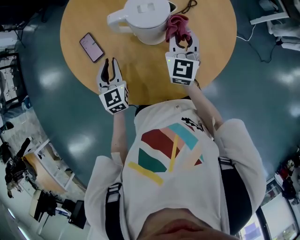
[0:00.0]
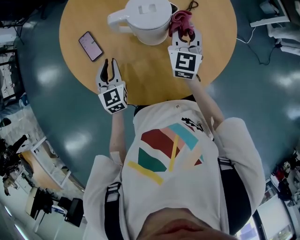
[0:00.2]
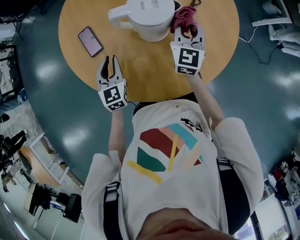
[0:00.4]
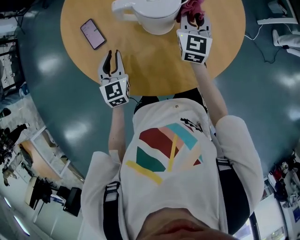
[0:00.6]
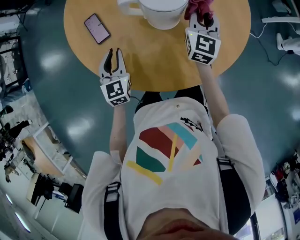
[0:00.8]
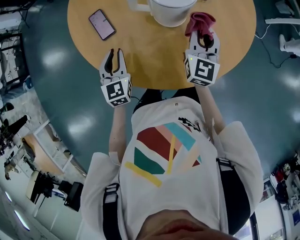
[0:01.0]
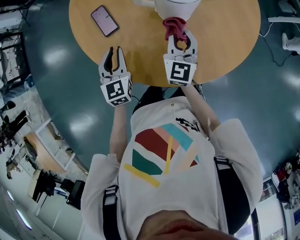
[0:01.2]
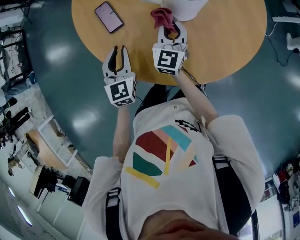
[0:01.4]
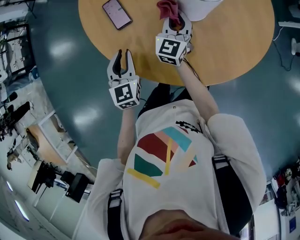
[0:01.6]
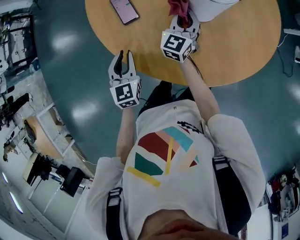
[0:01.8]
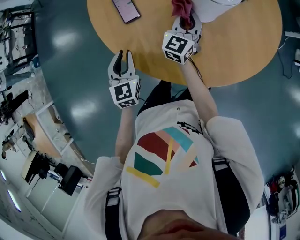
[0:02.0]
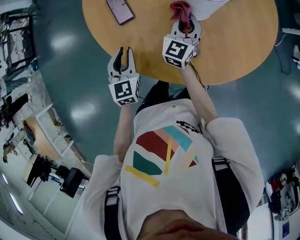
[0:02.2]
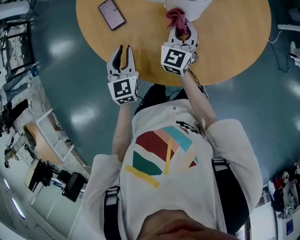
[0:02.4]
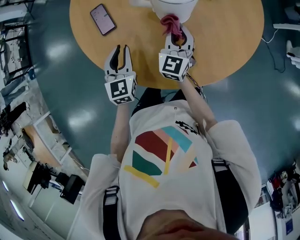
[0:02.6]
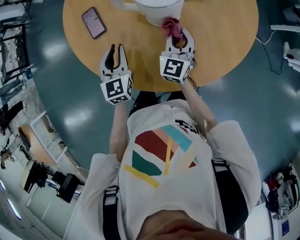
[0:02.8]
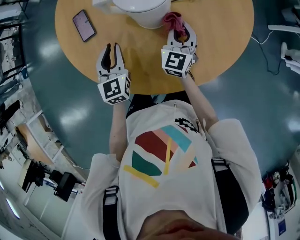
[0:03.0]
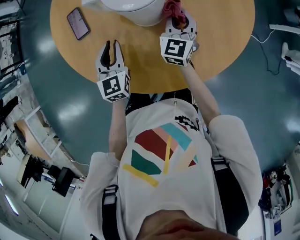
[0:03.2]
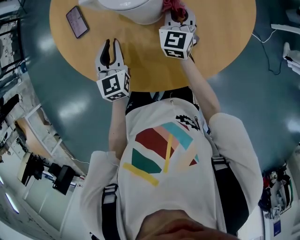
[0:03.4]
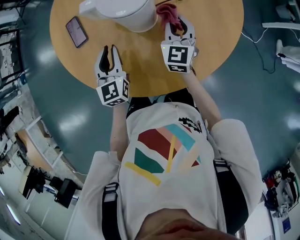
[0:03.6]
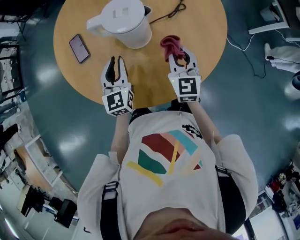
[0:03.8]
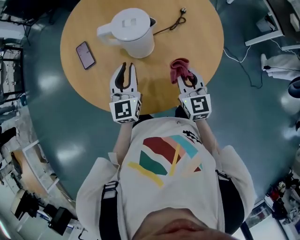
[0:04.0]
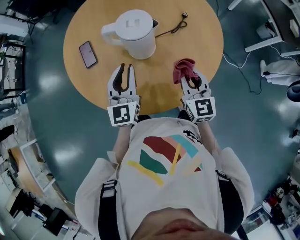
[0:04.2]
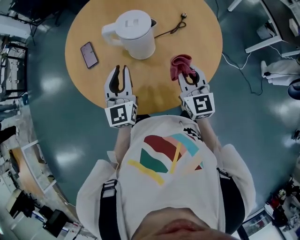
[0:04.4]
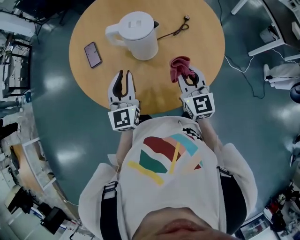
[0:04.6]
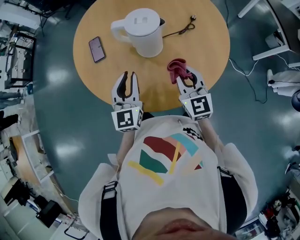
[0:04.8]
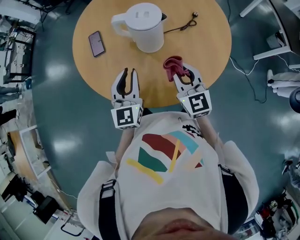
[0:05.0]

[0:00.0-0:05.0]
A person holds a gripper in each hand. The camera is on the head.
0:00.0 to 0:01.6: The right gripper heads to the left and downward, covering some 20 cm, while the left gripper is displaced to the left and backward by about 10 cm.
0:01.6 to 0:03.4: Both grippers travel together to the right, about 20 cm.
0:03.4 to 0:05.0: The left gripper goes some 15 cm upward, backward and to the right, while the right gripper travels backward and upward by roughly 20 cm, and turns by approximately 30 degrees.

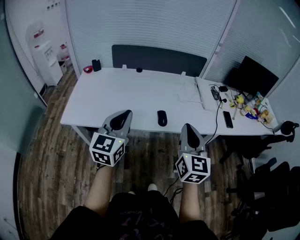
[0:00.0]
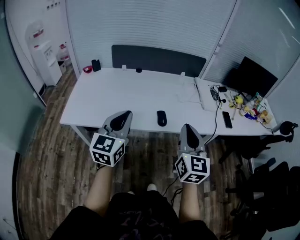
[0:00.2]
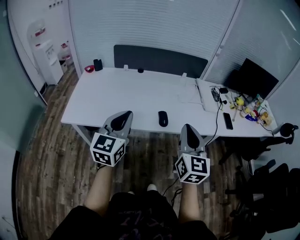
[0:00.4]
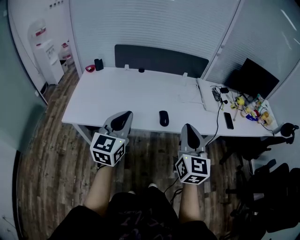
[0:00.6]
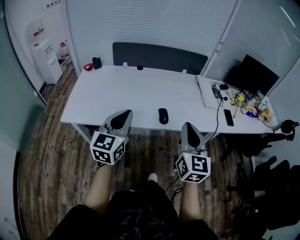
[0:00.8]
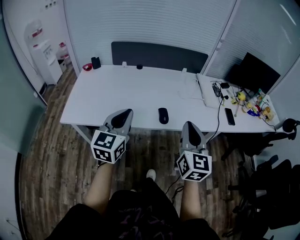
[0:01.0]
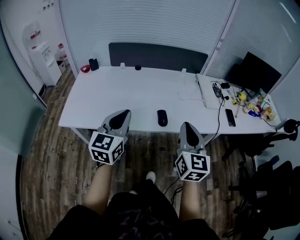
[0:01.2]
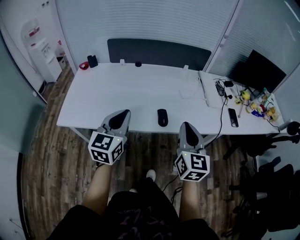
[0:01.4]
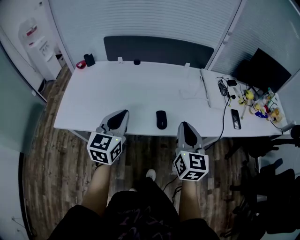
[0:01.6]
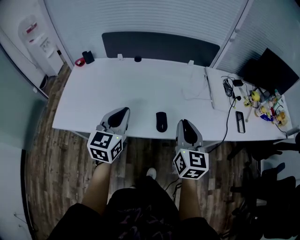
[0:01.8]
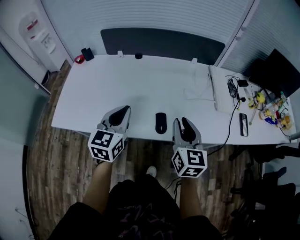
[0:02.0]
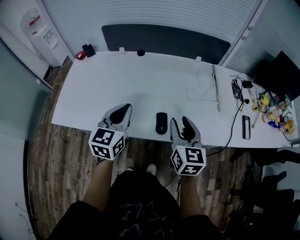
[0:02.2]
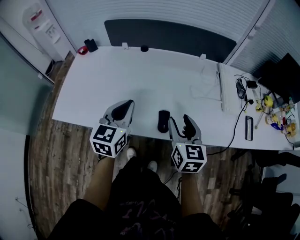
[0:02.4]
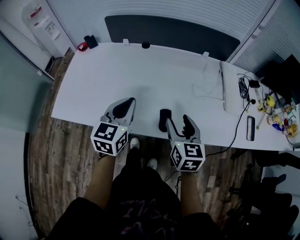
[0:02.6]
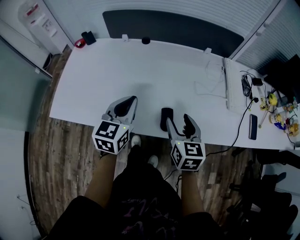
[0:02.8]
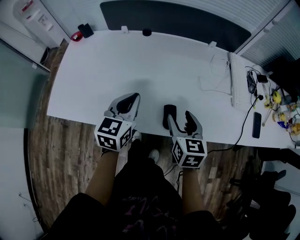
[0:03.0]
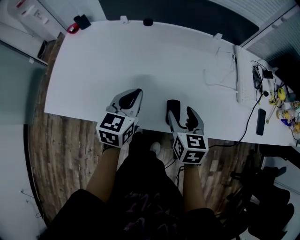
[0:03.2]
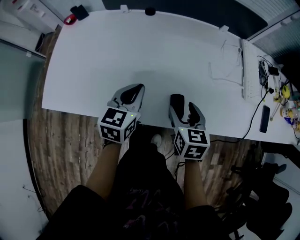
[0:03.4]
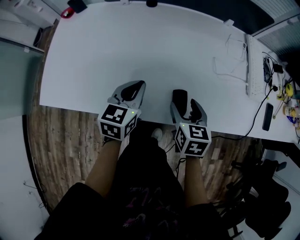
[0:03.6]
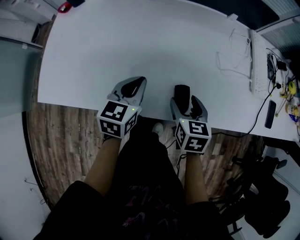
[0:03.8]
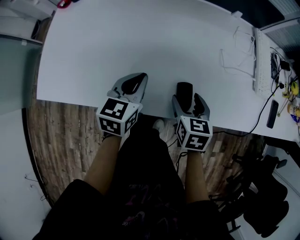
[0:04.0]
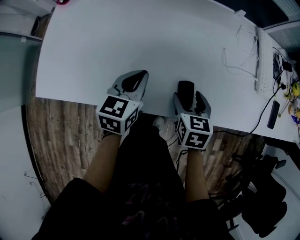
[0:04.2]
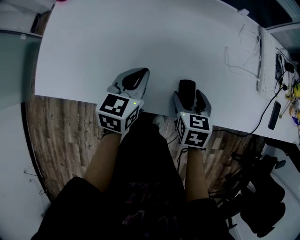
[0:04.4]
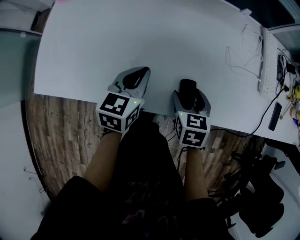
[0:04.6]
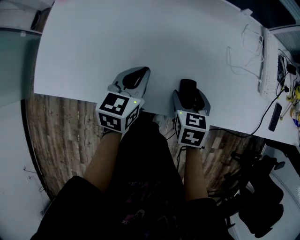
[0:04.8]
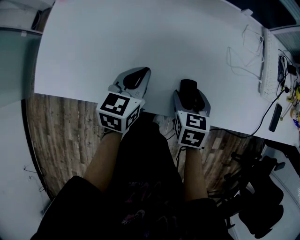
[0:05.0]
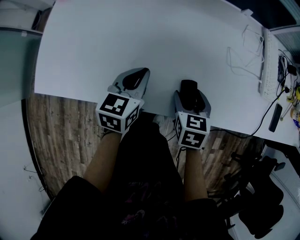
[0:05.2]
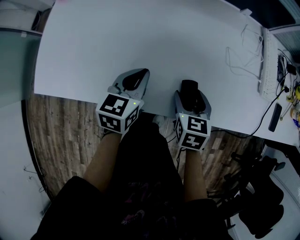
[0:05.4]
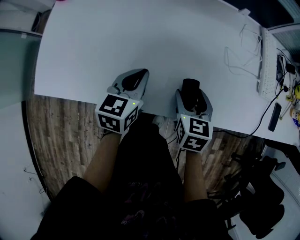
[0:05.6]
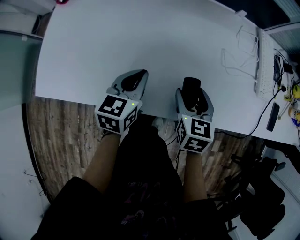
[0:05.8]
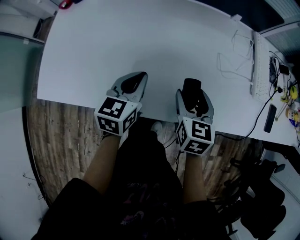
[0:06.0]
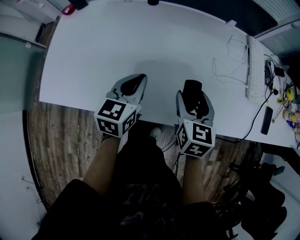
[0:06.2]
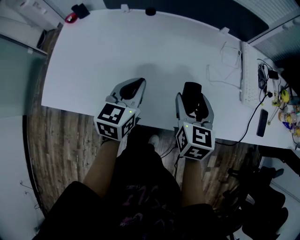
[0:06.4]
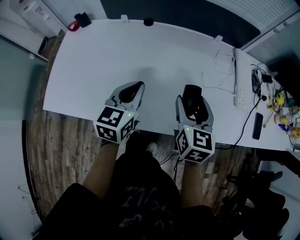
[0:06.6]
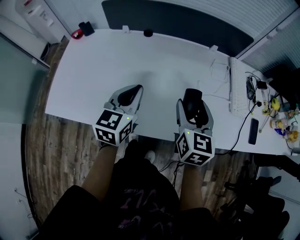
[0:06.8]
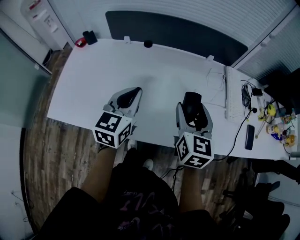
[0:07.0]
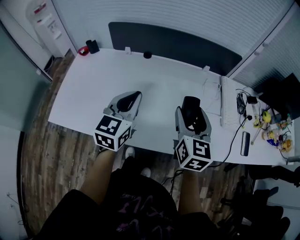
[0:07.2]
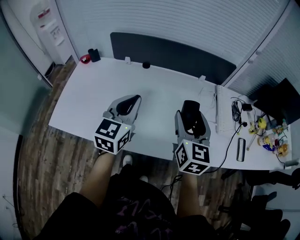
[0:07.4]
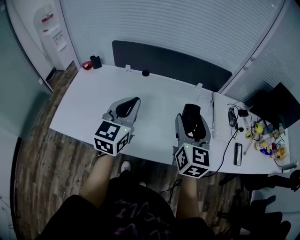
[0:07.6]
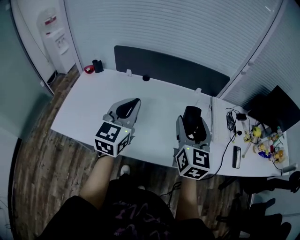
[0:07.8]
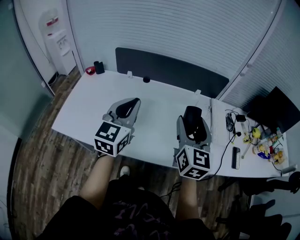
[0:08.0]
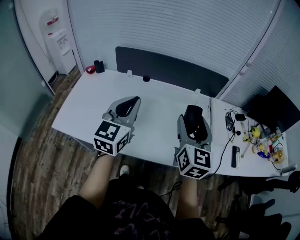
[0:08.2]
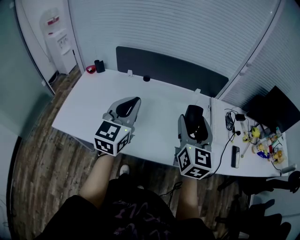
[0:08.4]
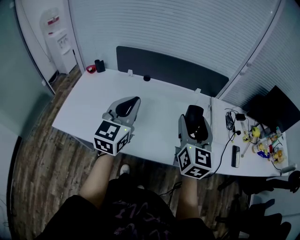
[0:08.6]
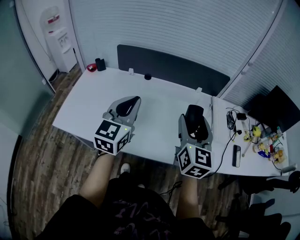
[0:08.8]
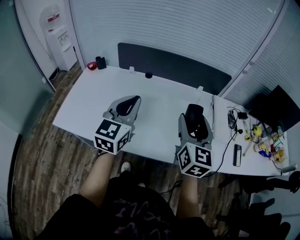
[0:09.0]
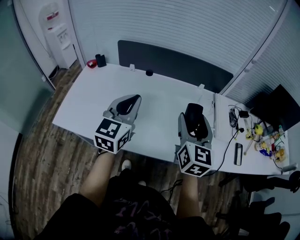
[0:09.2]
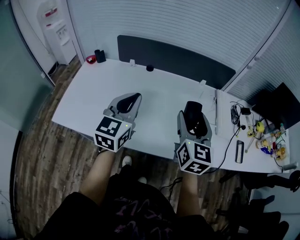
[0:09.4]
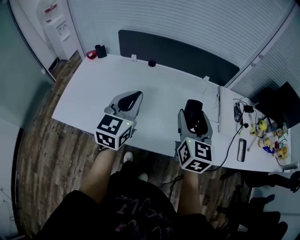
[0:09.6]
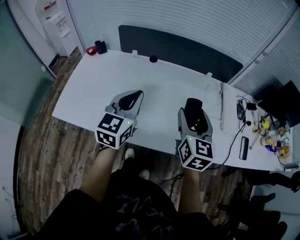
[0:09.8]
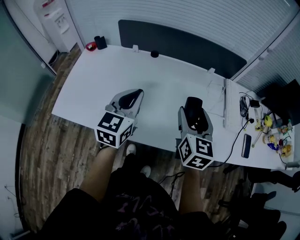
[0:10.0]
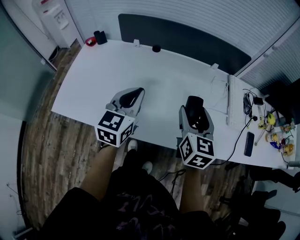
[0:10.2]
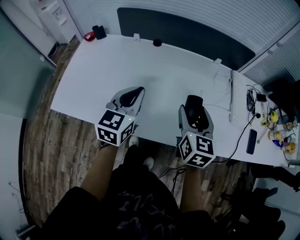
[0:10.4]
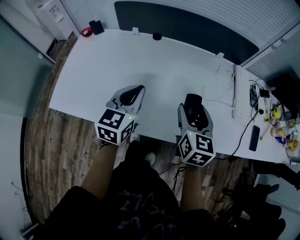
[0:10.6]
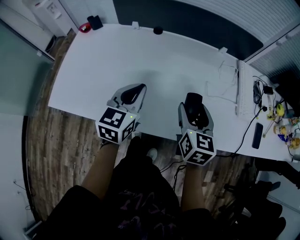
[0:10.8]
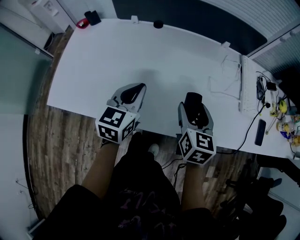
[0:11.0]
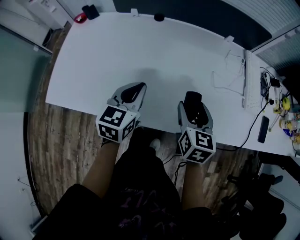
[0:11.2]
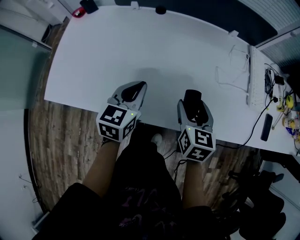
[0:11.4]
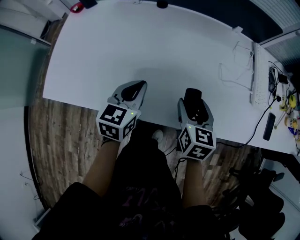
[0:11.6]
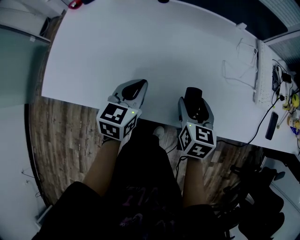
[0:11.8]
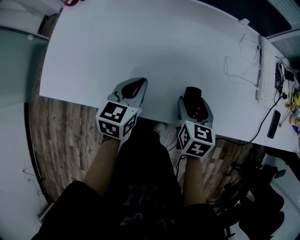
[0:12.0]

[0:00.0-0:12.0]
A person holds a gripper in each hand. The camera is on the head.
0:00.0 to 0:01.6: The grippers both shift forward and downward by roughly 15 cm.
0:01.6 to 0:03.0: Both grippers travel together forward and downward, about 20 cm. The right gripper rotates roughly 20 degrees, and opens its fingers.
0:03.0 to 0:04.4: The two grippers go about 10 cm downward.
0:04.4 to 0:06.0: The right gripper travels upward by roughly 5 cm.
0:06.0 to 0:07.6: Both grippers travel together upward, approximately 25 cm. The left gripper rotates approximately 30 degrees. Meanwhile the right gripper angles its fingers upward, by roughly 30 degrees.
0:07.6 to 0:09.0: There are only small adjustments of the grippers.
0:09.0 to 0:10.4: Both grippers travel together downward, roughly 10 cm.
0:10.4 to 0:12.0: Both grippers move downward, approximately 20 cm. The right gripper swivels about 20 degrees.

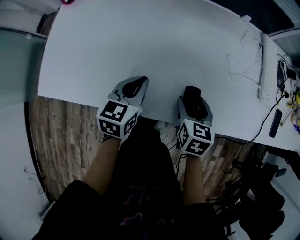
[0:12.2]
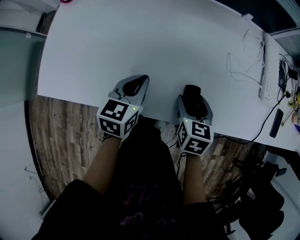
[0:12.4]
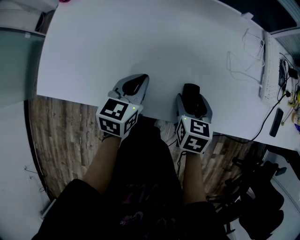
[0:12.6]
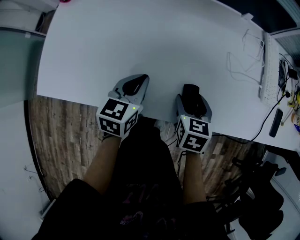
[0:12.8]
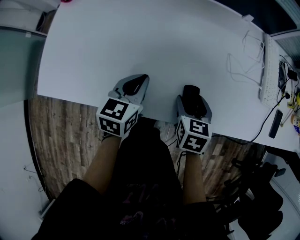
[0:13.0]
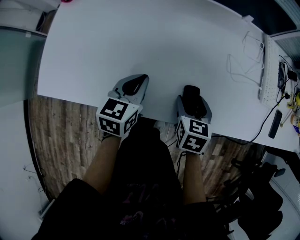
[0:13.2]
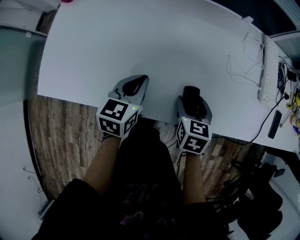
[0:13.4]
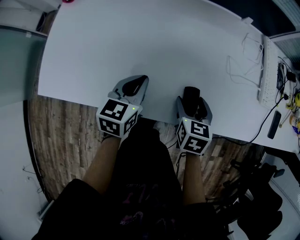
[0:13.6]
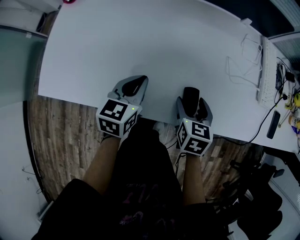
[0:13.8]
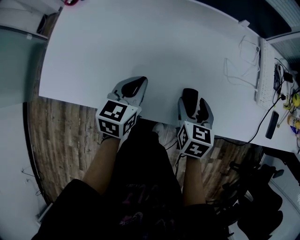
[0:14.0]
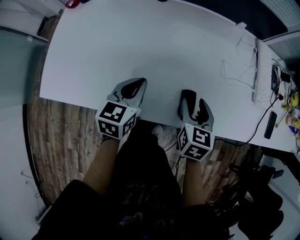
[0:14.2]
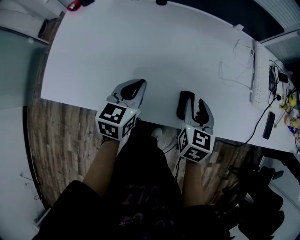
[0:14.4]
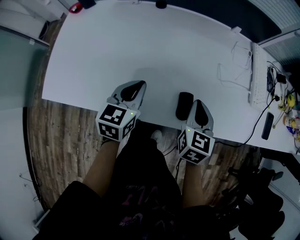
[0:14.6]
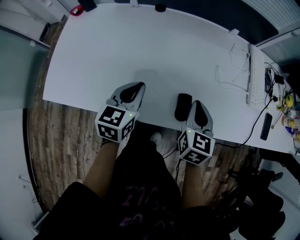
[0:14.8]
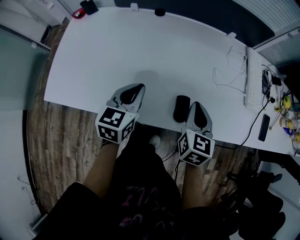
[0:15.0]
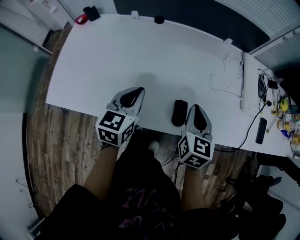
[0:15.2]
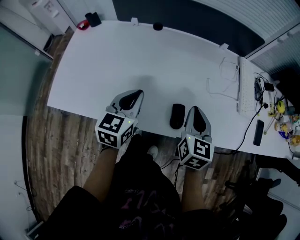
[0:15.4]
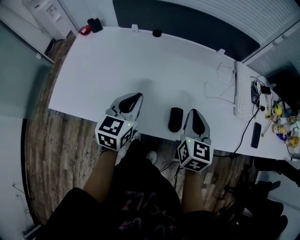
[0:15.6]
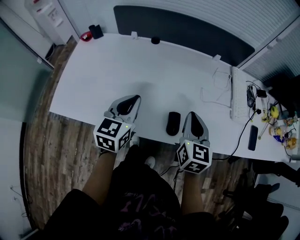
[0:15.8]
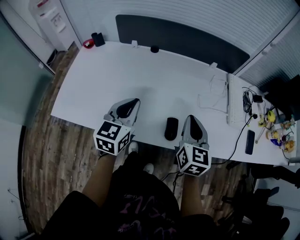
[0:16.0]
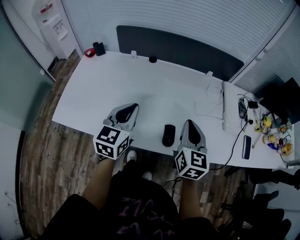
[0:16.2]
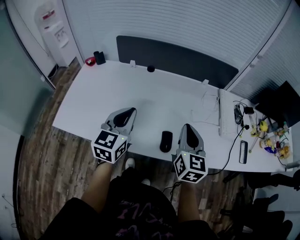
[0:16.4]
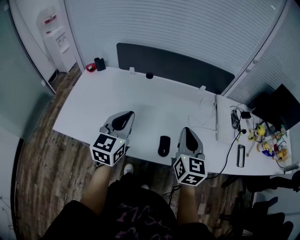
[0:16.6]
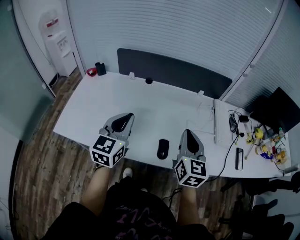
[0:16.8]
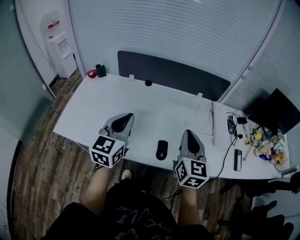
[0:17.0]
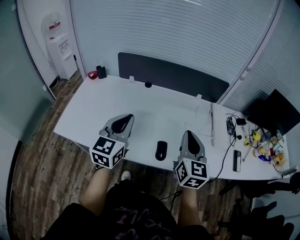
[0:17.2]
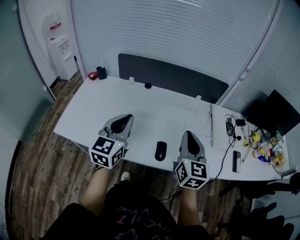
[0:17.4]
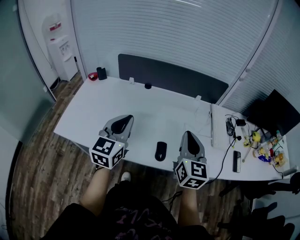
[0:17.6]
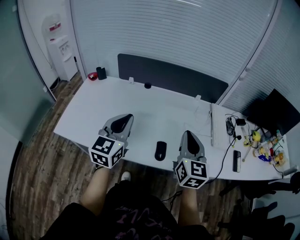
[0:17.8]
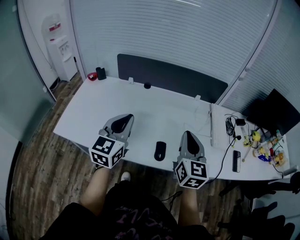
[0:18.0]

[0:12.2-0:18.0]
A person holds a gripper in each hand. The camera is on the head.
0:12.2 to 0:13.6: The grippers make only small movements.
0:13.6 to 0:15.0: The left gripper heads upward, covering about 5 cm. Meanwhile the right gripper moves upward, roughly 10 cm, changes its angle by roughly 20 degrees, and closes.
0:15.0 to 0:16.6: Both grippers move upward, some 15 cm. The left gripper changes its angle by about 20 degrees.
0:16.6 to 0:18.0: There are only small adjustments of the grippers.

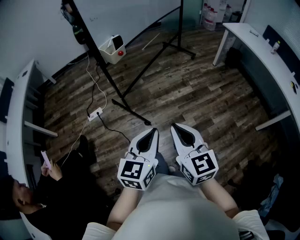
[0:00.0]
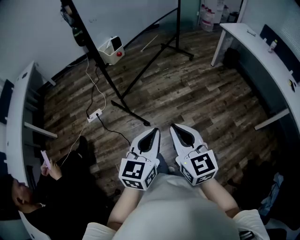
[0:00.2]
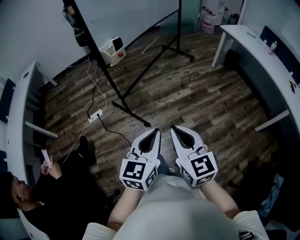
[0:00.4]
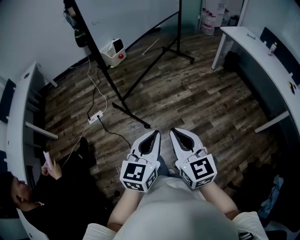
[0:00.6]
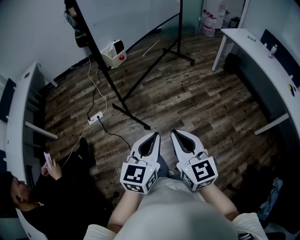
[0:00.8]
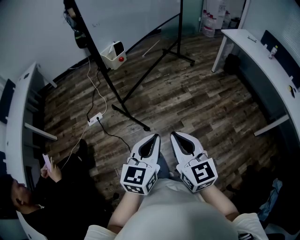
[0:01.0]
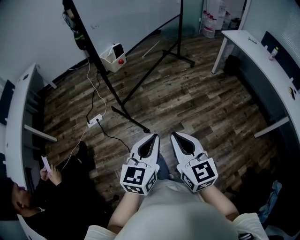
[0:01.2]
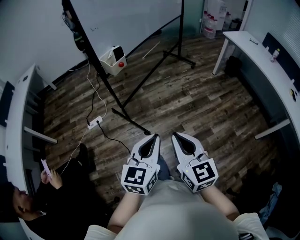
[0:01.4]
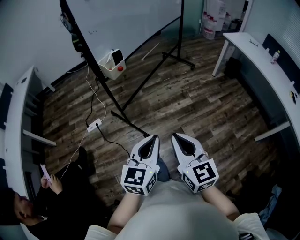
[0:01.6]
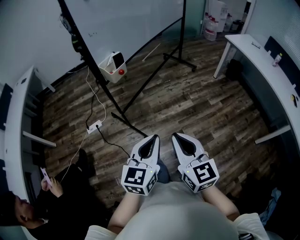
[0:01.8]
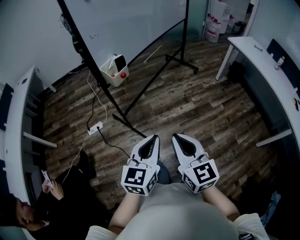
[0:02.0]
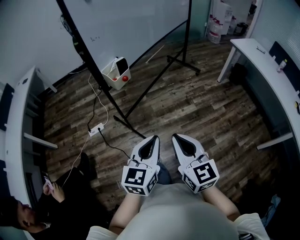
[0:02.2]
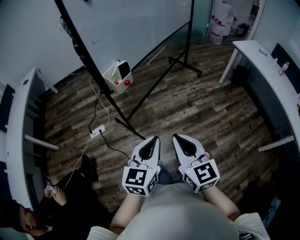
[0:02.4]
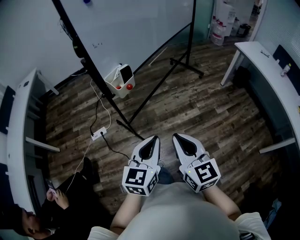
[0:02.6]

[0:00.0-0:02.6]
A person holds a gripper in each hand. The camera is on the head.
0:00.0 to 0:01.2: The grippers move only a little.
0:01.2 to 0:02.6: The grippers both shift forward by approximately 20 cm.
